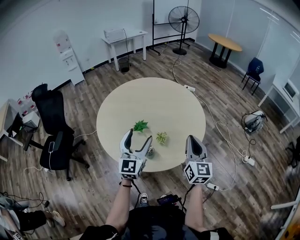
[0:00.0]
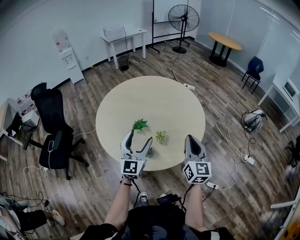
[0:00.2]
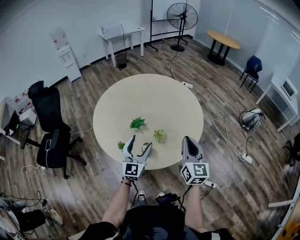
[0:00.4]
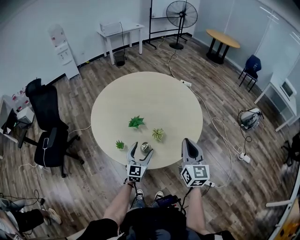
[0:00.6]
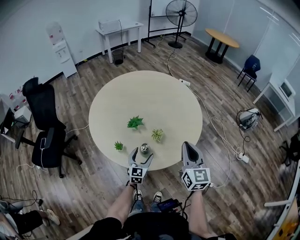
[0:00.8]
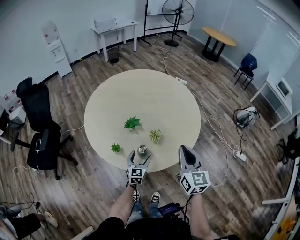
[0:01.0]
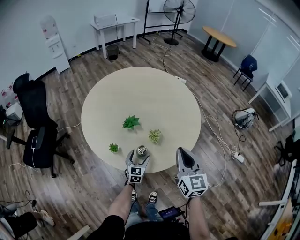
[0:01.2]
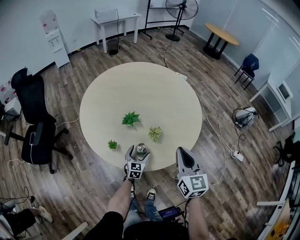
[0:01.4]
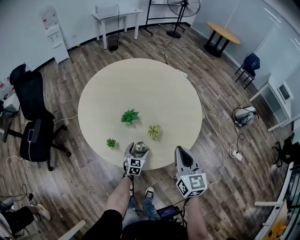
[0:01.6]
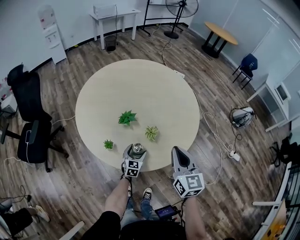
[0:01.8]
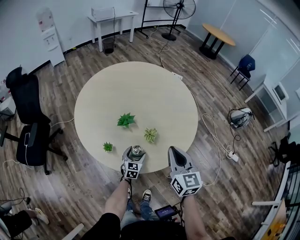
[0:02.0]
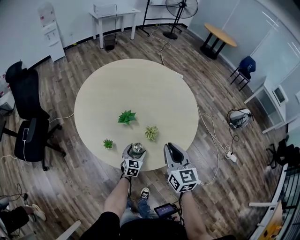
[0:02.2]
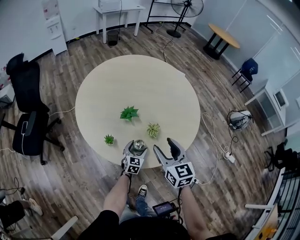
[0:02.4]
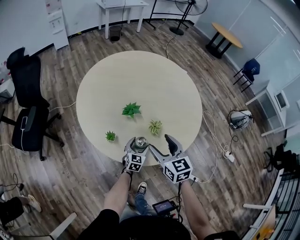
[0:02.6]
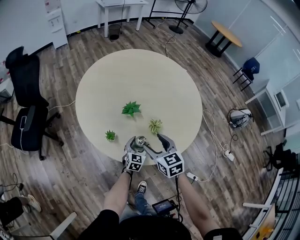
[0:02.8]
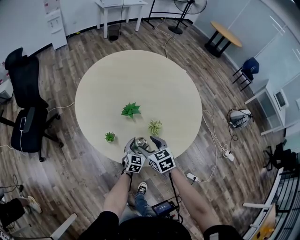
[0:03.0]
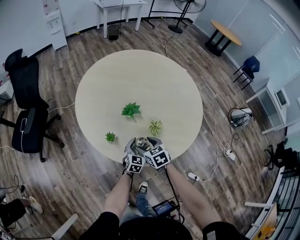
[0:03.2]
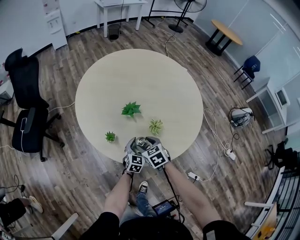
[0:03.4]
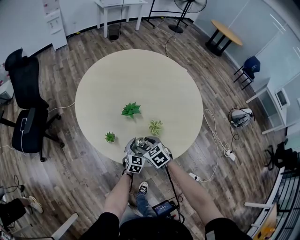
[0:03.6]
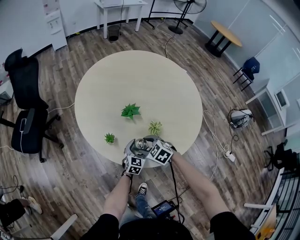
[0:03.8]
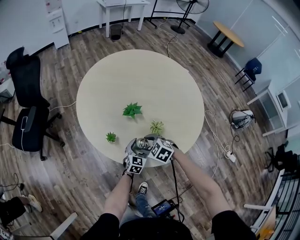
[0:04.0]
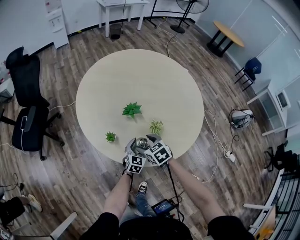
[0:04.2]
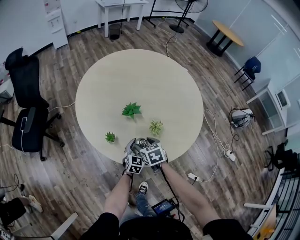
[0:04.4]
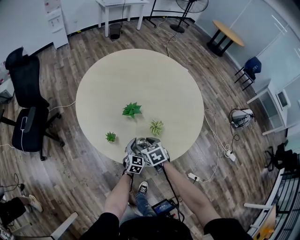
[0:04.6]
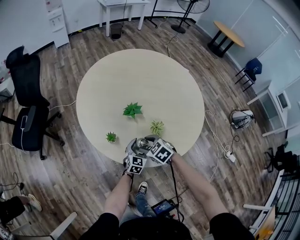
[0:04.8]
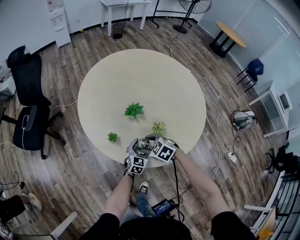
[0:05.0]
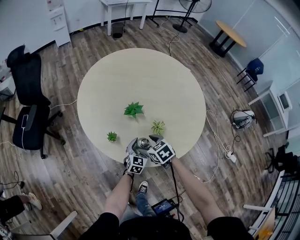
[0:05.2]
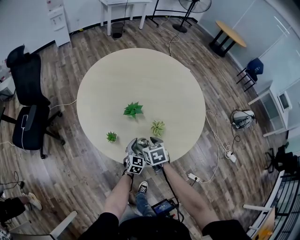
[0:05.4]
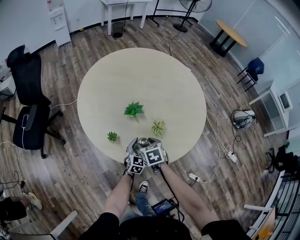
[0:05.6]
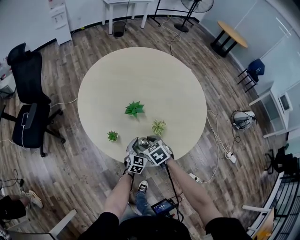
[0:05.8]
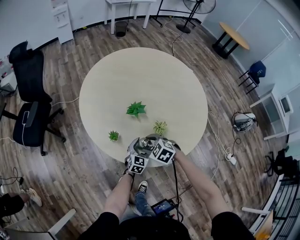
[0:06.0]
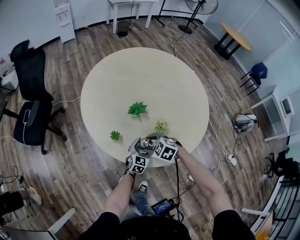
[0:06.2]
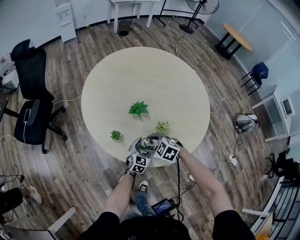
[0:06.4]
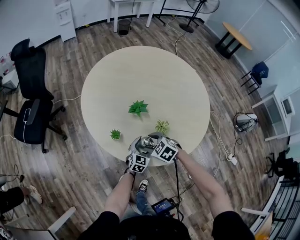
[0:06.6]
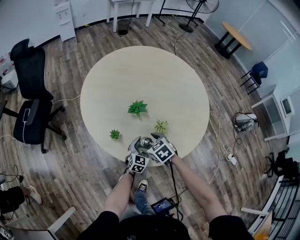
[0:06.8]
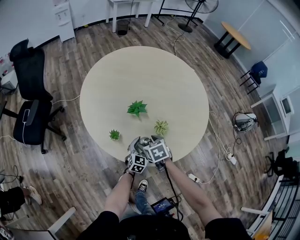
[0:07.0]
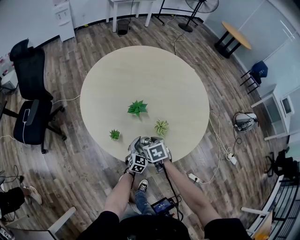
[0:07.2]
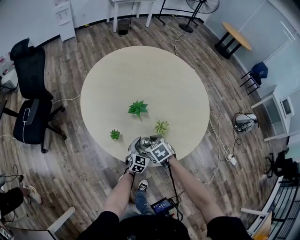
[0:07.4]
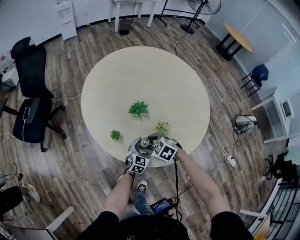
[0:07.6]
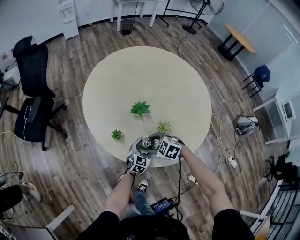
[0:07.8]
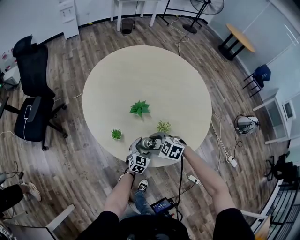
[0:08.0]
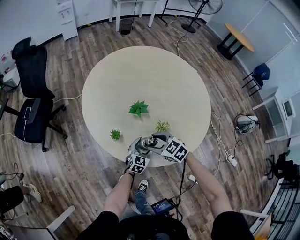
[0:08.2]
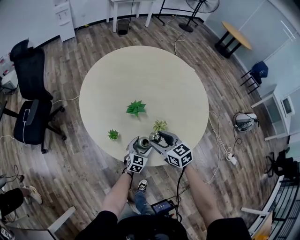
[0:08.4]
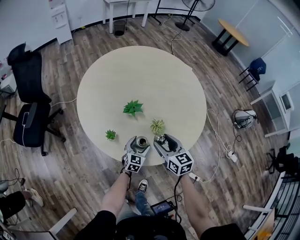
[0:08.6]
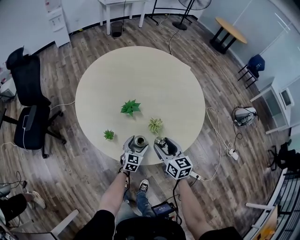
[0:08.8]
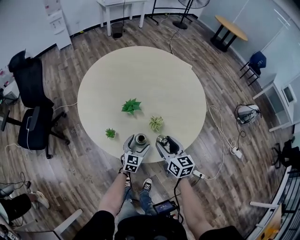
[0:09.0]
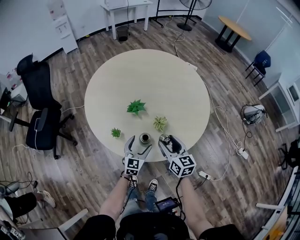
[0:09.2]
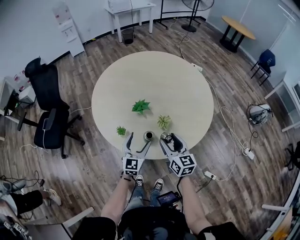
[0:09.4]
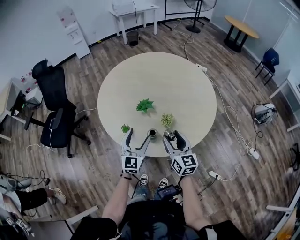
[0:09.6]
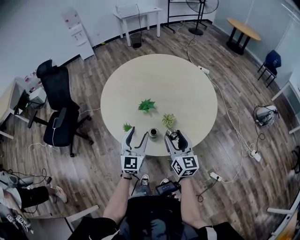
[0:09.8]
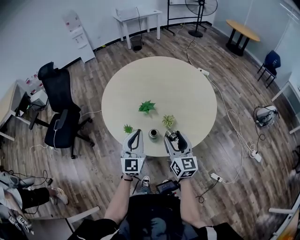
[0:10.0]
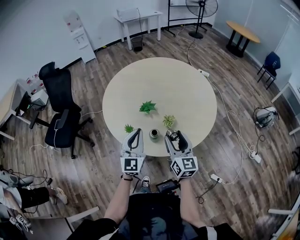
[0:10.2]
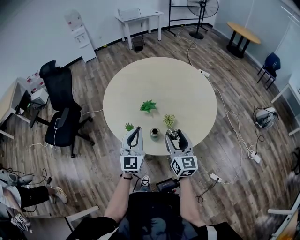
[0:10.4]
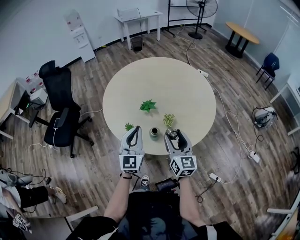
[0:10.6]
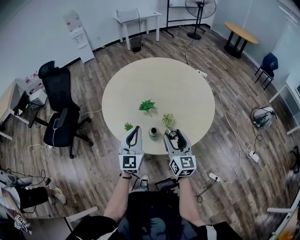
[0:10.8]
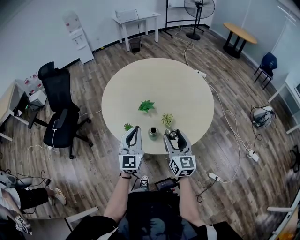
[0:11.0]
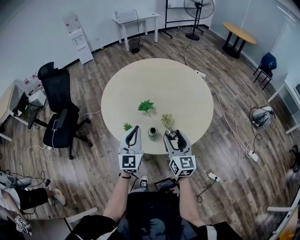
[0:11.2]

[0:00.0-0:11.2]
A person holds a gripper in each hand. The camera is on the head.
0:00.0 to 0:01.6: The left gripper travels downward by roughly 35 cm, and points its fingers approximately 30 degrees further downward; the right gripper moves downward, roughly 10 cm.
0:01.6 to 0:03.2: The right gripper goes about 25 cm downward and to the left, angles its fingers downward, by some 40 degrees, and opens.
0:03.2 to 0:04.8: The right gripper rotates some 30 degrees.
0:08.0 to 0:09.6: The two grippers go approximately 20 cm upward. The right gripper tilts its fingers about 50 degrees upward; the left gripper swivels some 20 degrees.
0:09.6 to 0:11.2: The left gripper moves upward, approximately 10 cm, and closes its fingers; the right gripper goes approximately 5 cm upward.

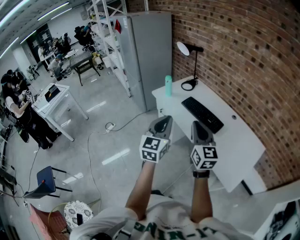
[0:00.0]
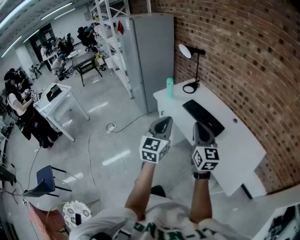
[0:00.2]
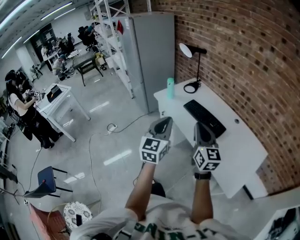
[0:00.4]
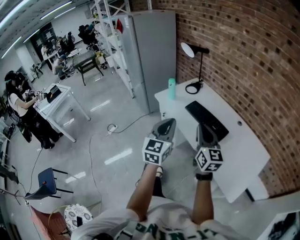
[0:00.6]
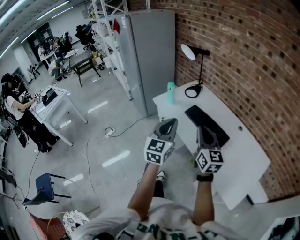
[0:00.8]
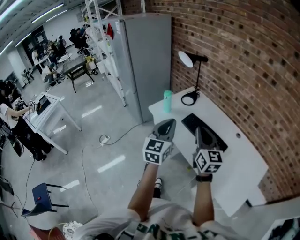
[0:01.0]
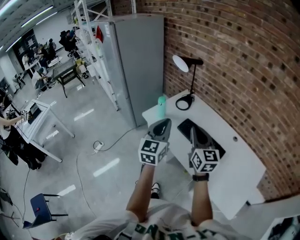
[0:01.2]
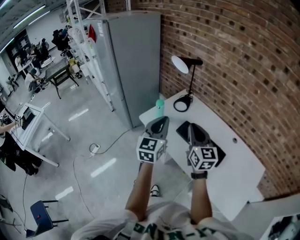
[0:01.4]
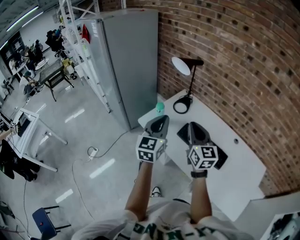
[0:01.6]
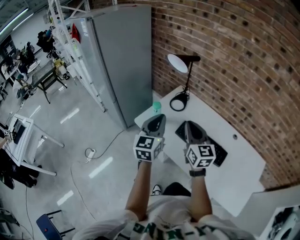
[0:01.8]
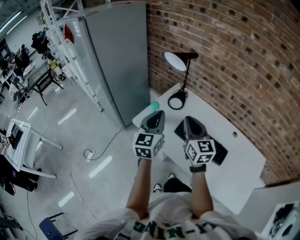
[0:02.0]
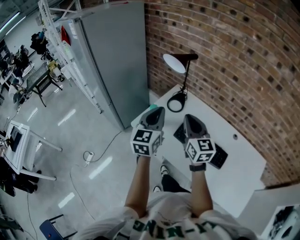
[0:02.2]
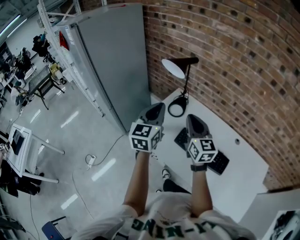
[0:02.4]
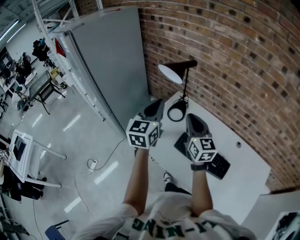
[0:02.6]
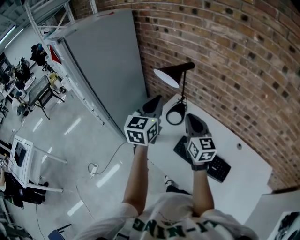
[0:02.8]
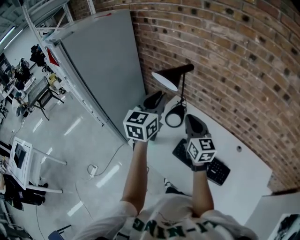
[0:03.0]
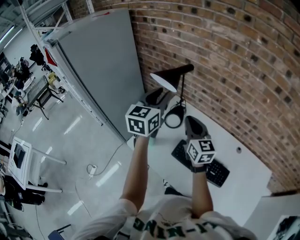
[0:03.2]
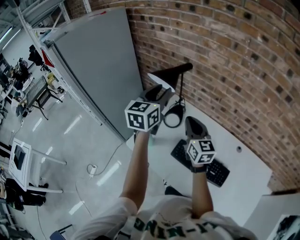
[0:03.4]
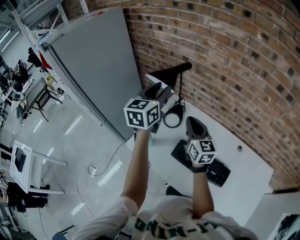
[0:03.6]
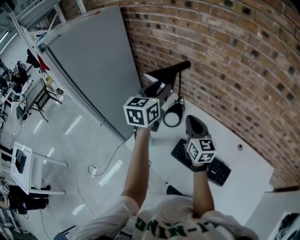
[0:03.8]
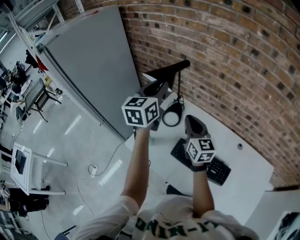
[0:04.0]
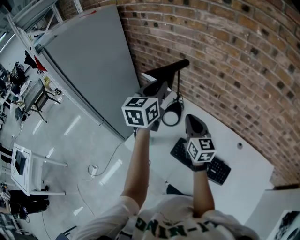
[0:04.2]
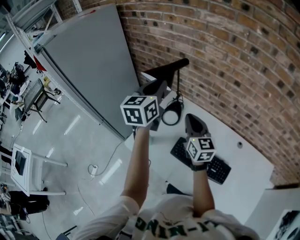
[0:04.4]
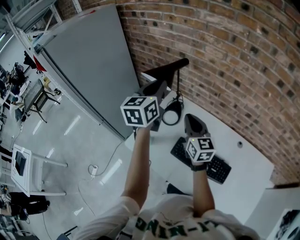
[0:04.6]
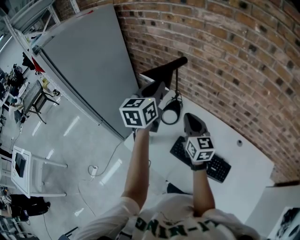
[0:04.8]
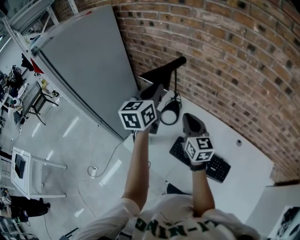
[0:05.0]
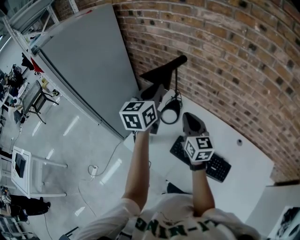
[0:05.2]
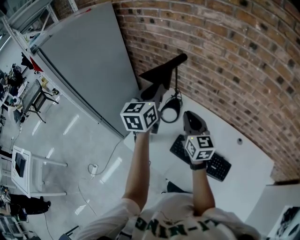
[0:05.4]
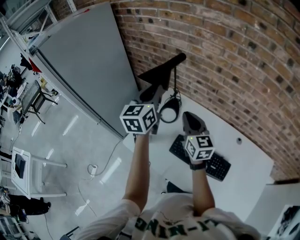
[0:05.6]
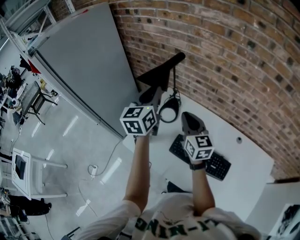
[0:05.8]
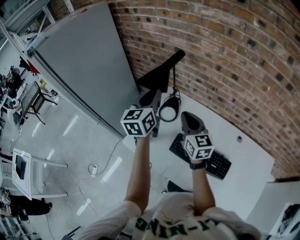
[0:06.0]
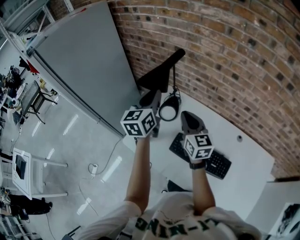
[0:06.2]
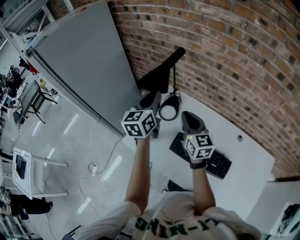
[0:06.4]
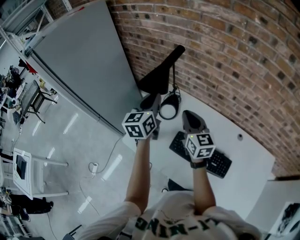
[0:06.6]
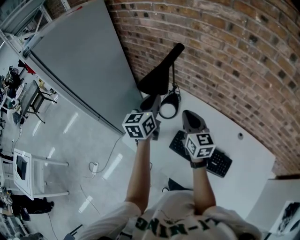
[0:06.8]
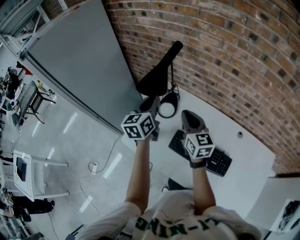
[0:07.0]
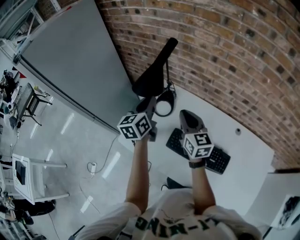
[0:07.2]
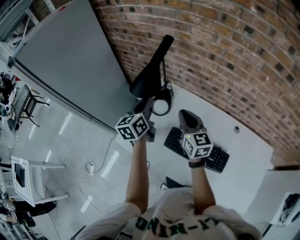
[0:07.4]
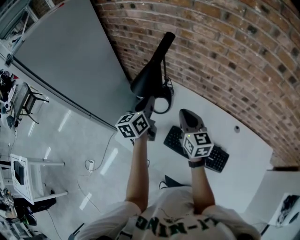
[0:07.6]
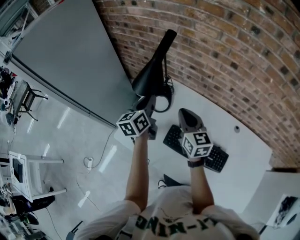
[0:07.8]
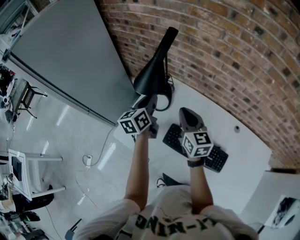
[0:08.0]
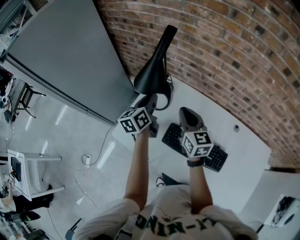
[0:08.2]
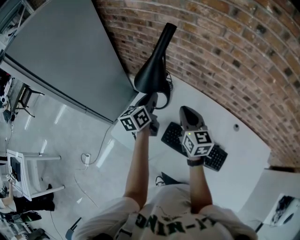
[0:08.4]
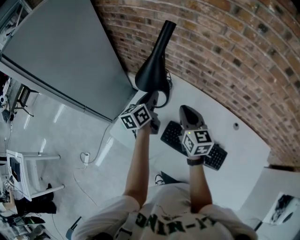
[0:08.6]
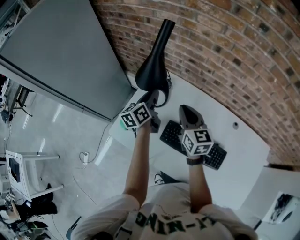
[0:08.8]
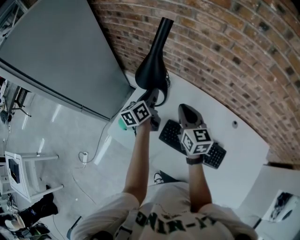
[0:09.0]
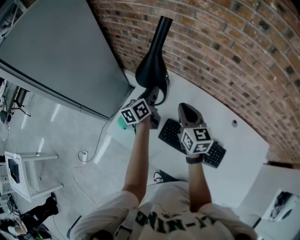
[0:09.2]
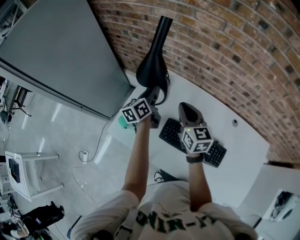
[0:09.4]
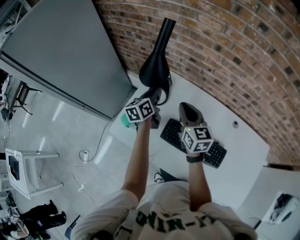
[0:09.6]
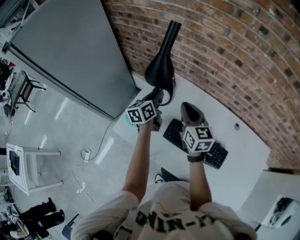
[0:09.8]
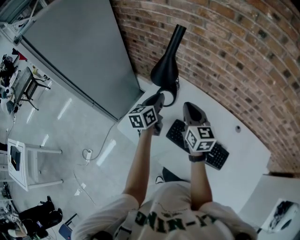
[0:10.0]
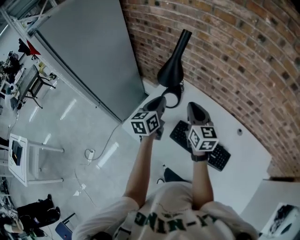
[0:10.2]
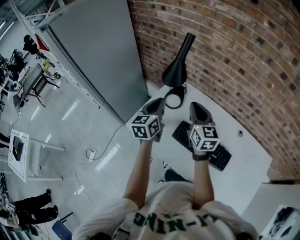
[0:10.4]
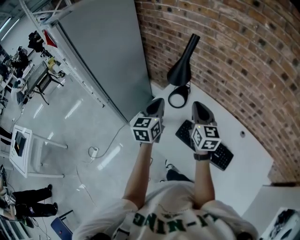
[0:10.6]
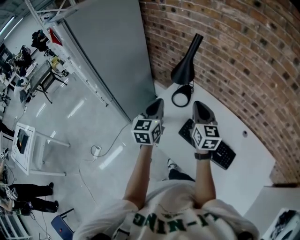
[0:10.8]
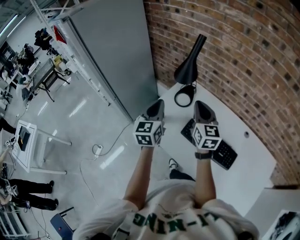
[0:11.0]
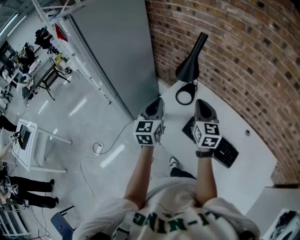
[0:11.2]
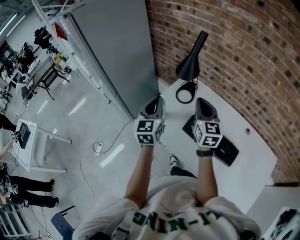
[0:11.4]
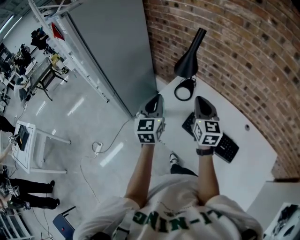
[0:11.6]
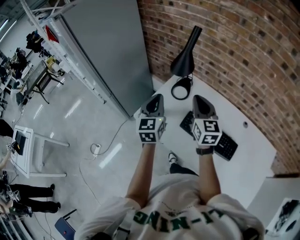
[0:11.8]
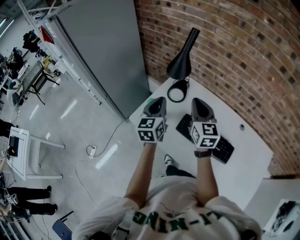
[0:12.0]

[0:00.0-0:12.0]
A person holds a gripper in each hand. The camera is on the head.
0:00.0 to 0:01.6: Both grippers travel together forward, roughly 35 cm.
0:01.6 to 0:03.0: The grippers both shift forward by approximately 25 cm.
0:03.0 to 0:04.4: The left gripper shifts some 10 cm forward; the right gripper moves approximately 5 cm.
0:04.4 to 0:06.0: The left gripper heads downward, covering some 5 cm.
0:06.0 to 0:07.6: The left gripper goes some 10 cm downward. The right gripper moves some 5 cm.
0:07.6 to 0:09.0: The left gripper goes about 10 cm downward.
0:09.0 to 0:10.4: The left gripper heads backward and upward, covering roughly 15 cm, and rotates roughly 30 degrees. The right gripper heads upward and backward, covering about 10 cm.

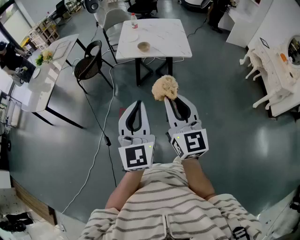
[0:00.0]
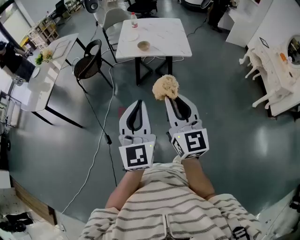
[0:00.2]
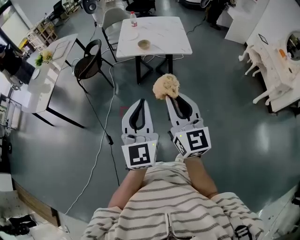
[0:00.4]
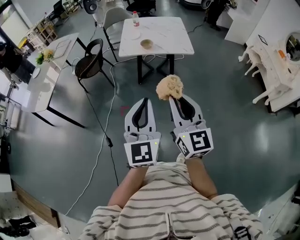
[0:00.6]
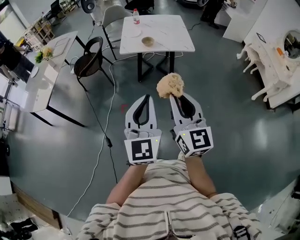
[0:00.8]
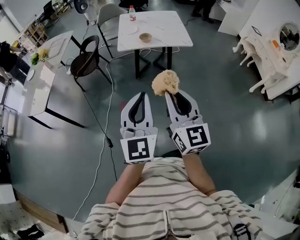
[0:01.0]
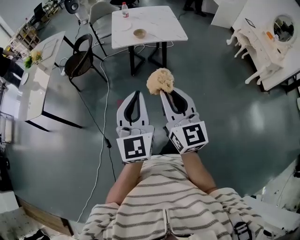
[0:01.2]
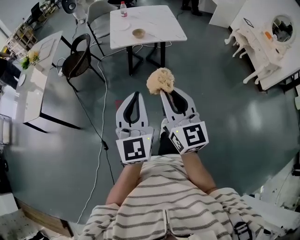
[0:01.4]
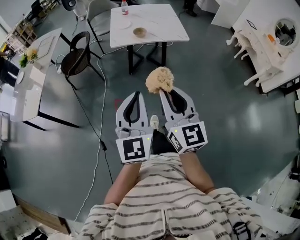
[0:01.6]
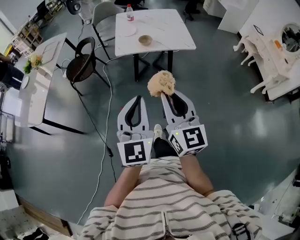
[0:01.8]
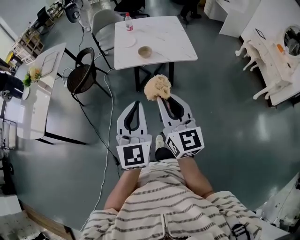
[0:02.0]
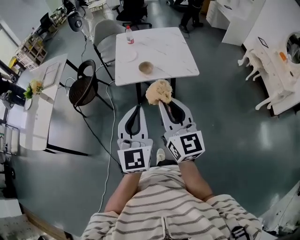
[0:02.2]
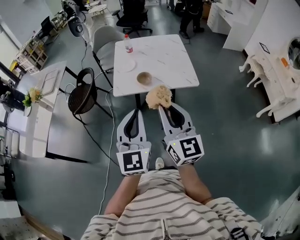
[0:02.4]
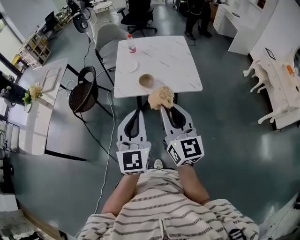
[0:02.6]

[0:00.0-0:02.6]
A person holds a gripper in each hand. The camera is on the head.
0:00.0 to 0:01.2: Both grippers travel together to the left, about 15 cm.
0:01.2 to 0:02.6: Both grippers travel together forward, approximately 35 cm.
